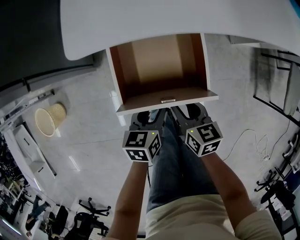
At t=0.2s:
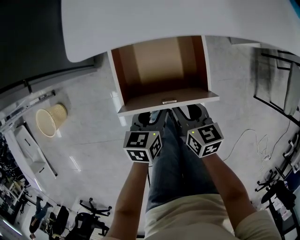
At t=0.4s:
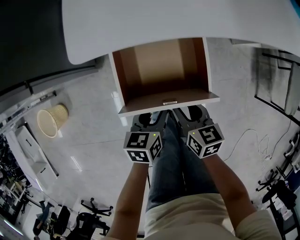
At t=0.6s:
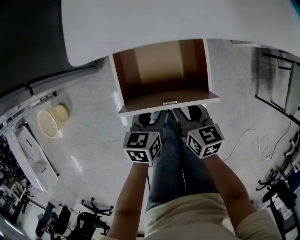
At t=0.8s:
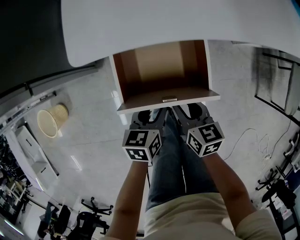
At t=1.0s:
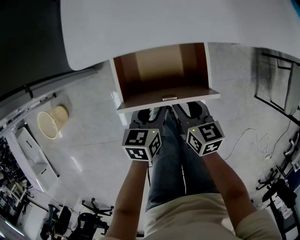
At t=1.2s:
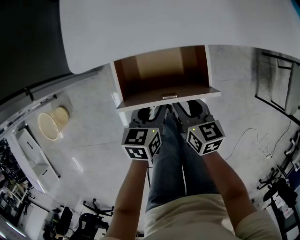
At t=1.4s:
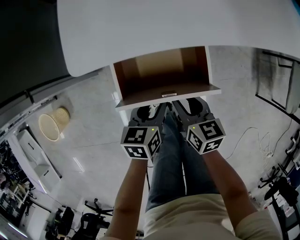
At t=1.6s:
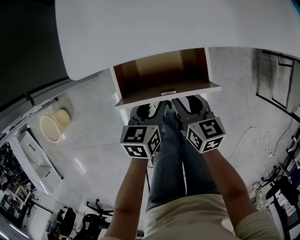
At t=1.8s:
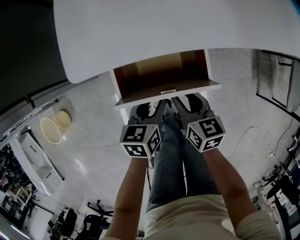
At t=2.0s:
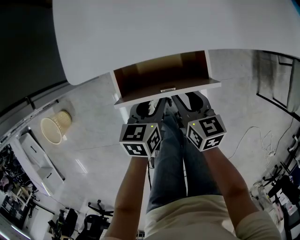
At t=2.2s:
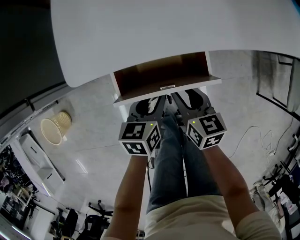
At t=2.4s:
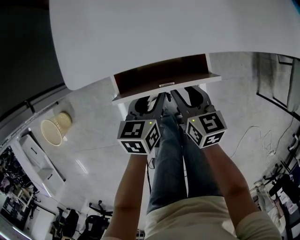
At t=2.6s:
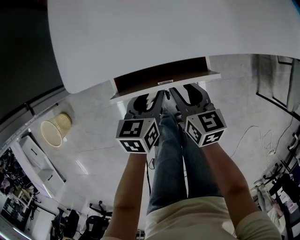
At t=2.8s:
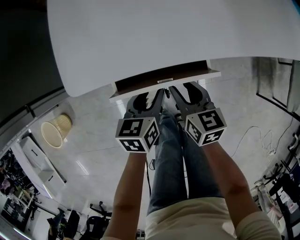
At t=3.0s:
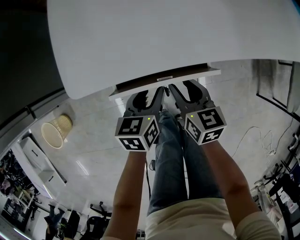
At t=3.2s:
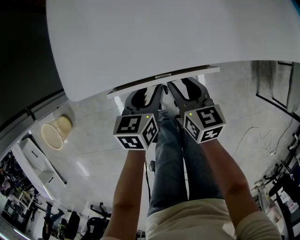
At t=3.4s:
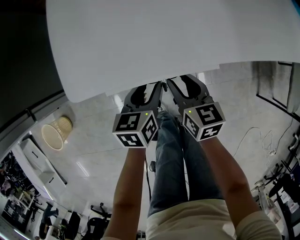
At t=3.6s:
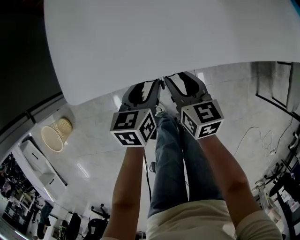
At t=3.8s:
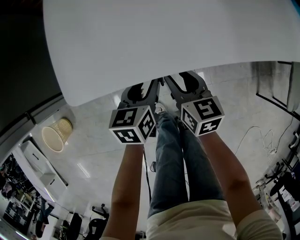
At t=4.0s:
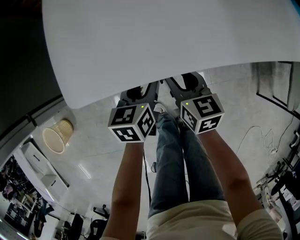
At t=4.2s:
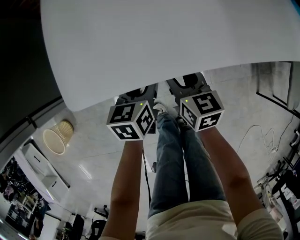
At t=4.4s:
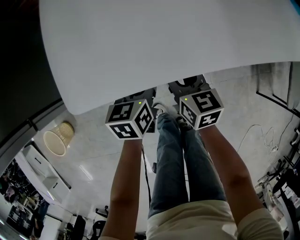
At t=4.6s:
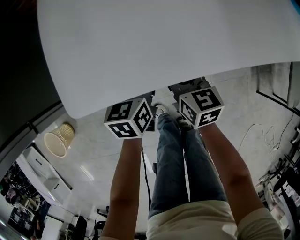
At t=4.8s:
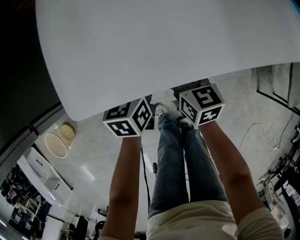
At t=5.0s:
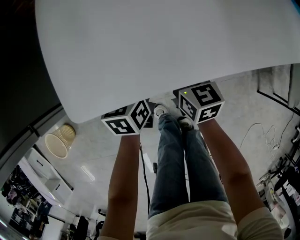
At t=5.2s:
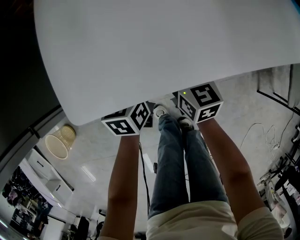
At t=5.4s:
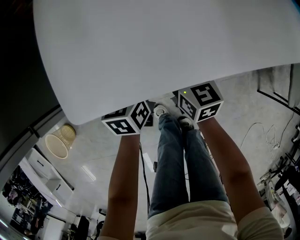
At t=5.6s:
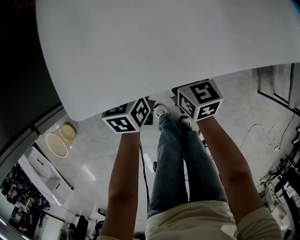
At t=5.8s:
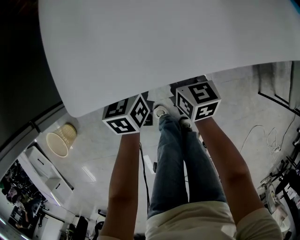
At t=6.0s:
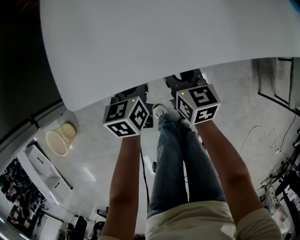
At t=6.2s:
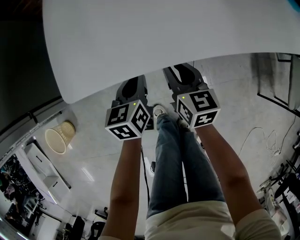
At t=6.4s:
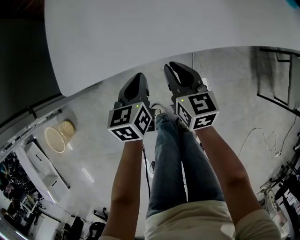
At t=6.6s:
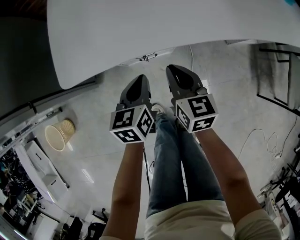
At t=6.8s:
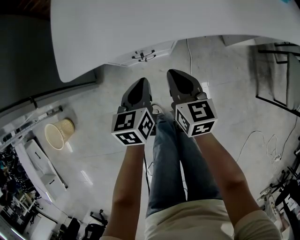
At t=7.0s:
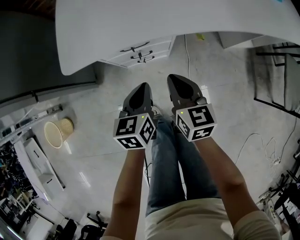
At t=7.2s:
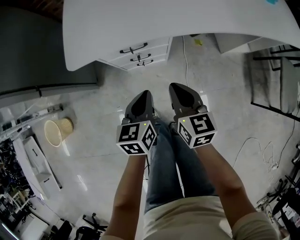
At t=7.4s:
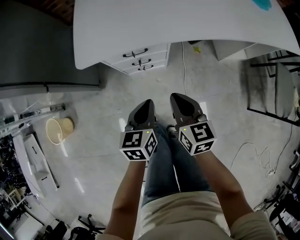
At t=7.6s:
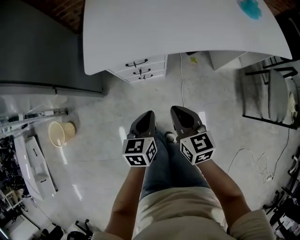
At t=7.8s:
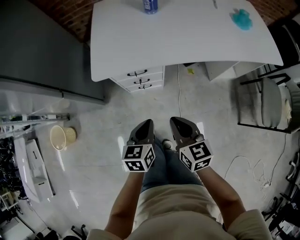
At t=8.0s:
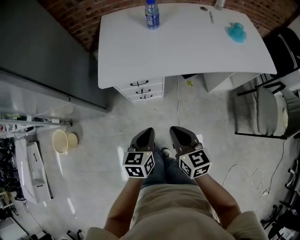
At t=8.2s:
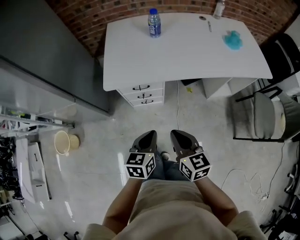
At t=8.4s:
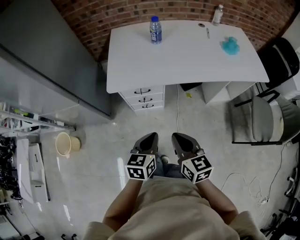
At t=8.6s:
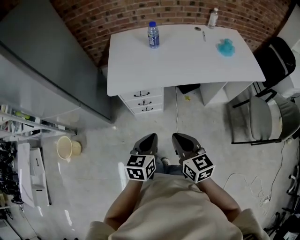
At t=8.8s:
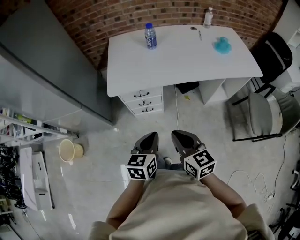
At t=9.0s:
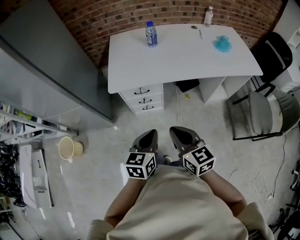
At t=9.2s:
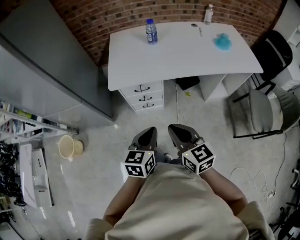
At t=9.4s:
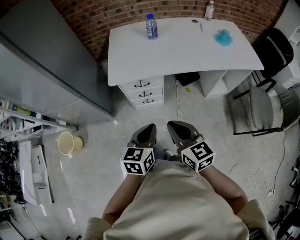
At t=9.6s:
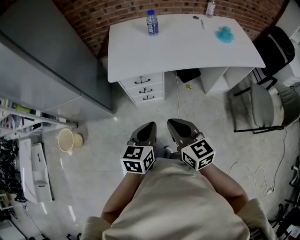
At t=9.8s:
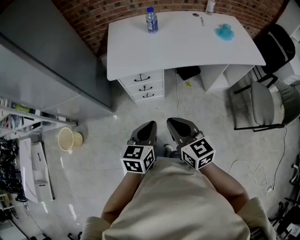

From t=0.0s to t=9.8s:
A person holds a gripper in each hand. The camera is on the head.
From t=0.0s to t=1.4s: The grippers move only a little.
From t=1.4s to t=2.8s: Both grippers move forward, some 5 cm.
From t=2.8s to t=4.2s: The two grippers go approximately 10 cm forward.
From t=4.2s to t=5.6s: The grippers stay close to where they were, moving slightly.
From t=5.6s to t=7.0s: The two grippers go approximately 20 cm backward, to the right and upward. The left gripper closes. Meanwhile the right gripper closes.
From t=7.0s to t=8.4s: The grippers both shift upward and backward by roughly 30 cm.
From t=8.4s to t=9.8s: The left gripper changes place by roughly 5 cm, while the right gripper changes place by about 5 cm.

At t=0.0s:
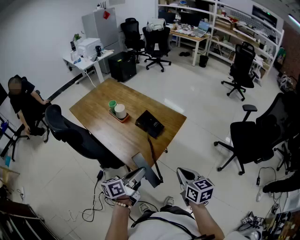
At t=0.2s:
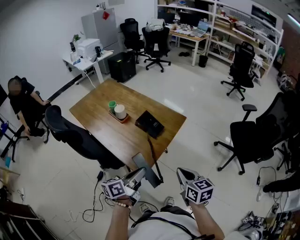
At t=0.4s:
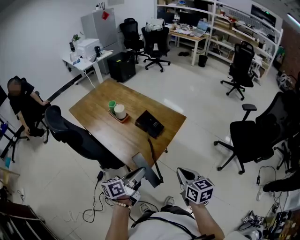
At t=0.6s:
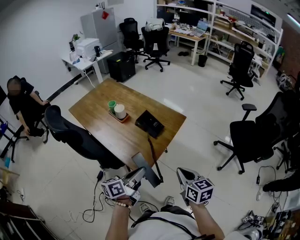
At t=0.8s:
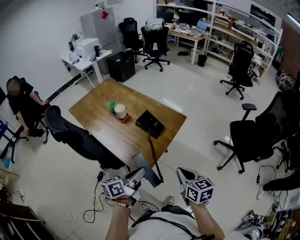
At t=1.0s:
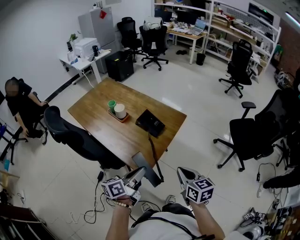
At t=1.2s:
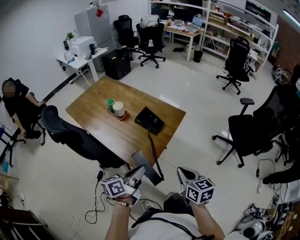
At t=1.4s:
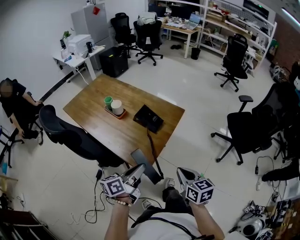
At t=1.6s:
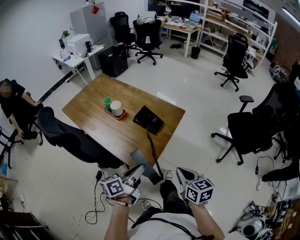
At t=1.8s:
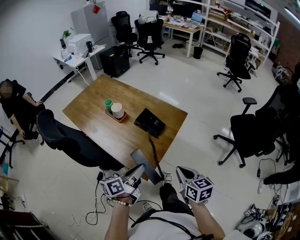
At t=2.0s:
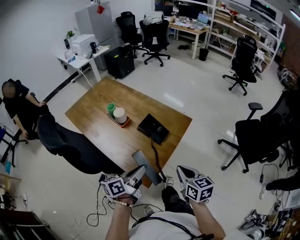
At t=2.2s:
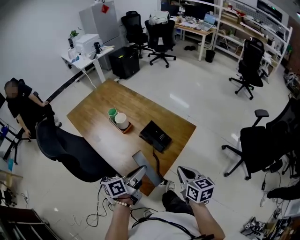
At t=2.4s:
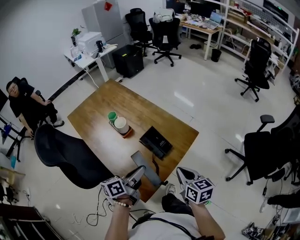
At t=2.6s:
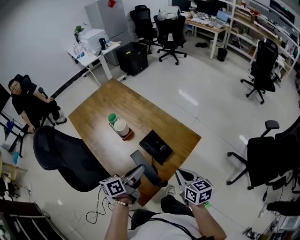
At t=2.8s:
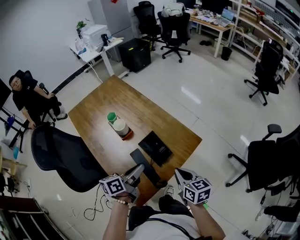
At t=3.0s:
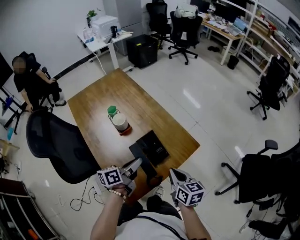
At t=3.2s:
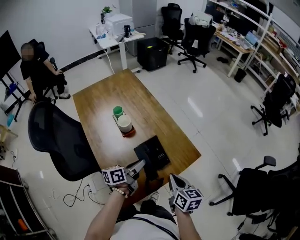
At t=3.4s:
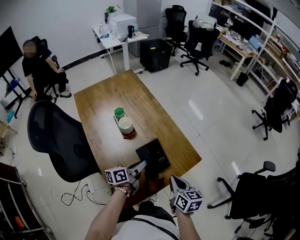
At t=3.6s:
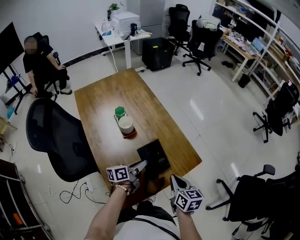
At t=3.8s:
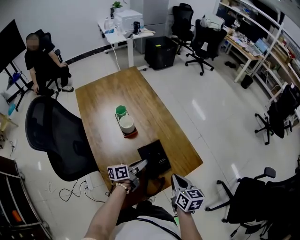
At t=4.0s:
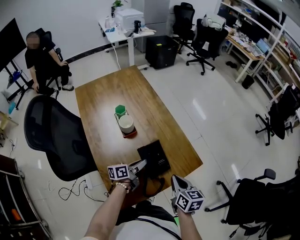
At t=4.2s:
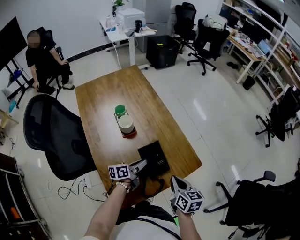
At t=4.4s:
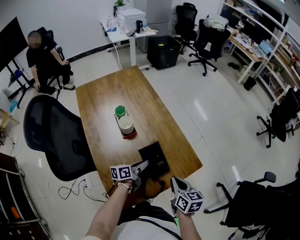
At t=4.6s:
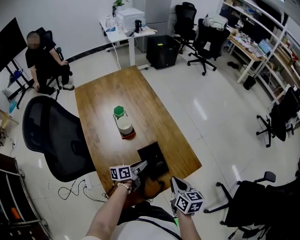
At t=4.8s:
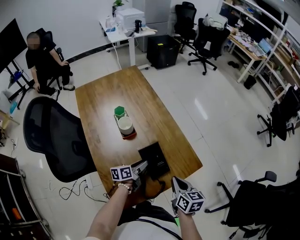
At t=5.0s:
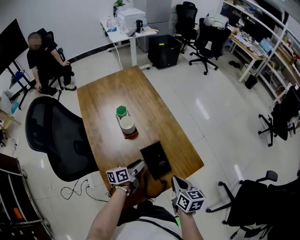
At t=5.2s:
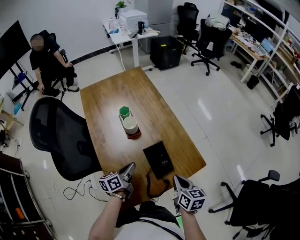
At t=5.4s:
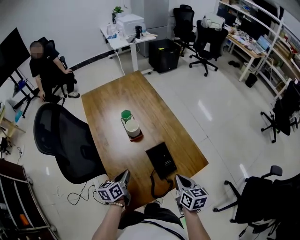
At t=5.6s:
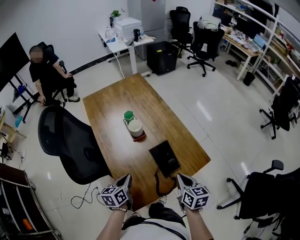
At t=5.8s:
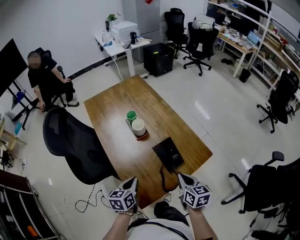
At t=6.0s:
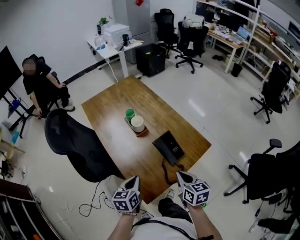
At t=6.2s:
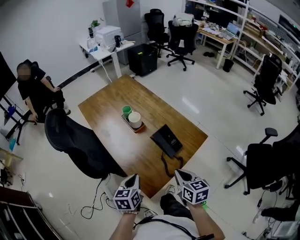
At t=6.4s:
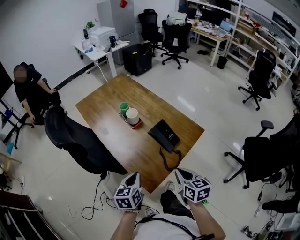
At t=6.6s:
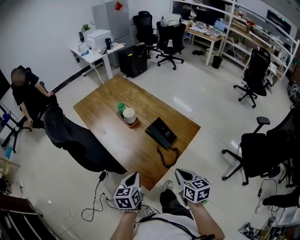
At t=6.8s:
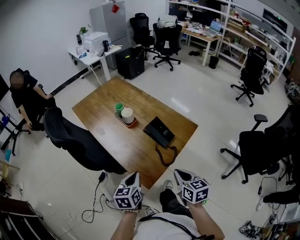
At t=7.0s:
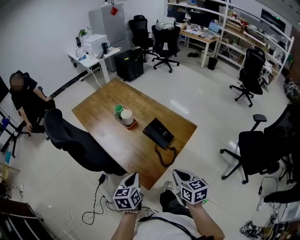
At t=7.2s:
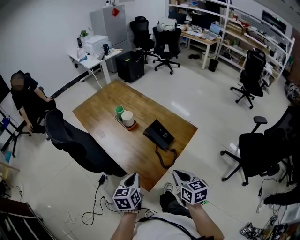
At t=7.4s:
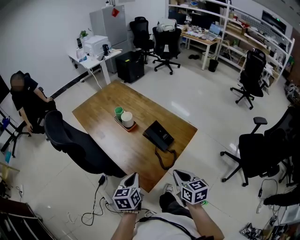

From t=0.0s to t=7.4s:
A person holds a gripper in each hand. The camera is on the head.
From t=0.0s to t=1.4s: The grippers stay close to where they were, moving slightly.
From t=1.4s to t=3.0s: Both grippers move forward, approximately 25 cm.
From t=3.0s to t=4.4s: The left gripper shifts about 15 cm downward and forward; the right gripper moves roughly 5 cm.
From t=4.4s to t=6.0s: The left gripper heads backward, to the left and upward, covering roughly 25 cm, changes its angle by some 40 degrees, and opens, then closes again. Meanwhile the right gripper shifts about 10 cm to the left and backward.
From t=6.0s to t=7.4s: The left gripper is displaced backward by roughly 5 cm. Meanwhile the right gripper heads backward, covering approximately 10 cm.

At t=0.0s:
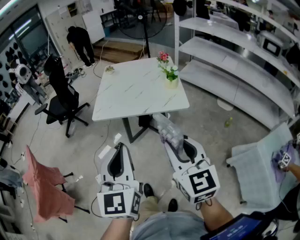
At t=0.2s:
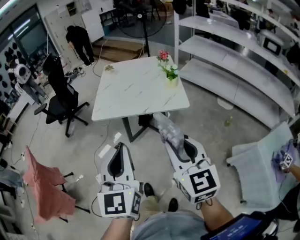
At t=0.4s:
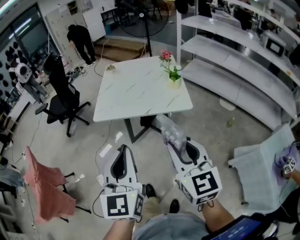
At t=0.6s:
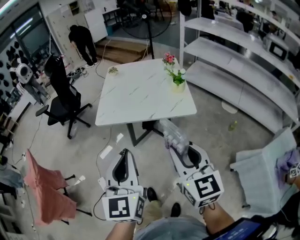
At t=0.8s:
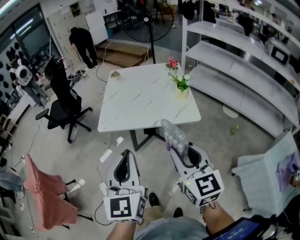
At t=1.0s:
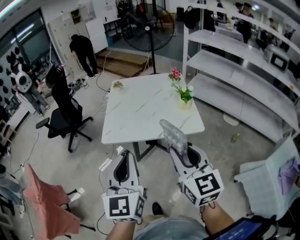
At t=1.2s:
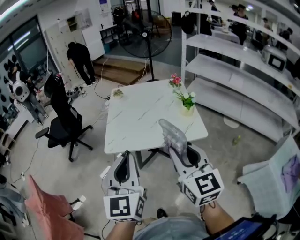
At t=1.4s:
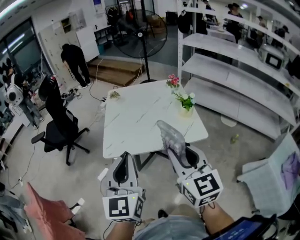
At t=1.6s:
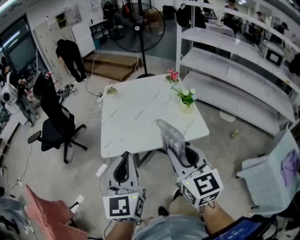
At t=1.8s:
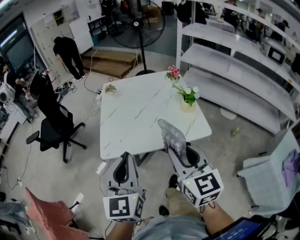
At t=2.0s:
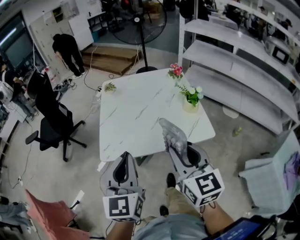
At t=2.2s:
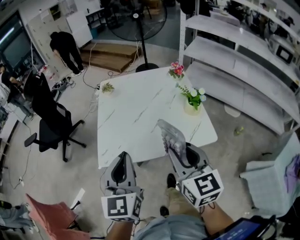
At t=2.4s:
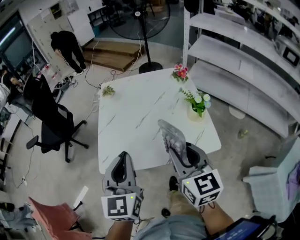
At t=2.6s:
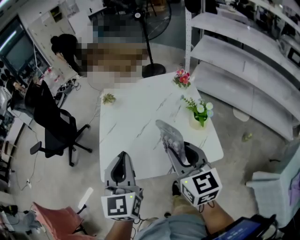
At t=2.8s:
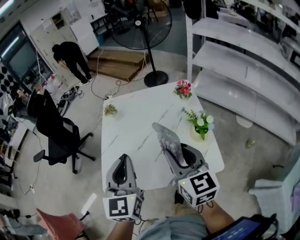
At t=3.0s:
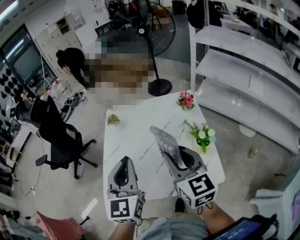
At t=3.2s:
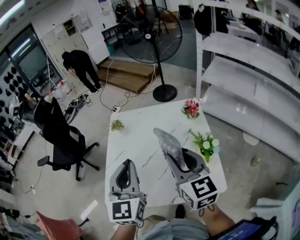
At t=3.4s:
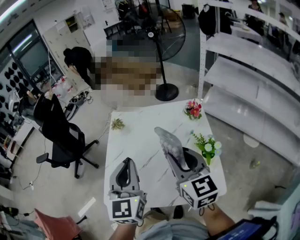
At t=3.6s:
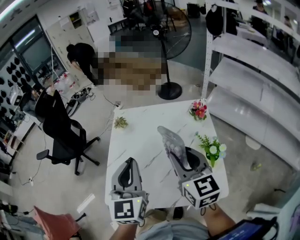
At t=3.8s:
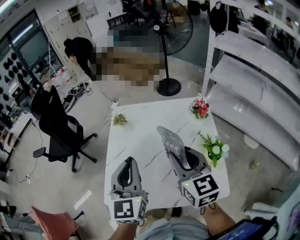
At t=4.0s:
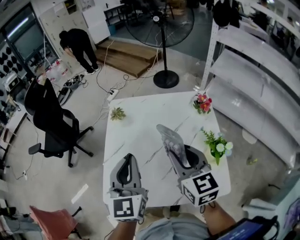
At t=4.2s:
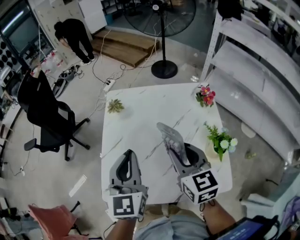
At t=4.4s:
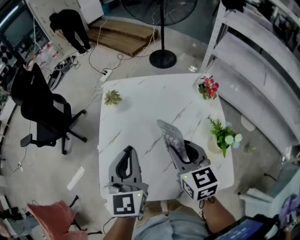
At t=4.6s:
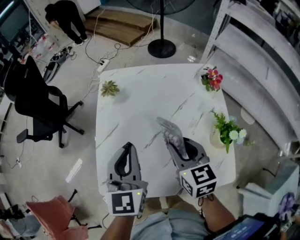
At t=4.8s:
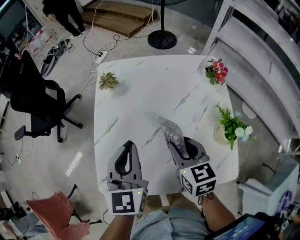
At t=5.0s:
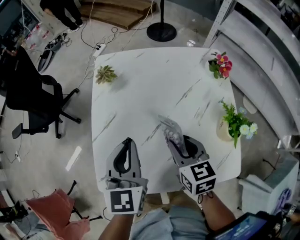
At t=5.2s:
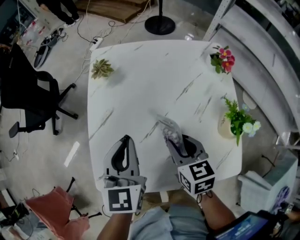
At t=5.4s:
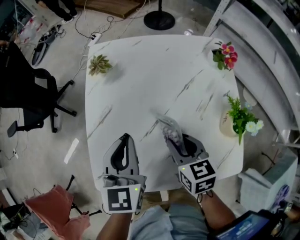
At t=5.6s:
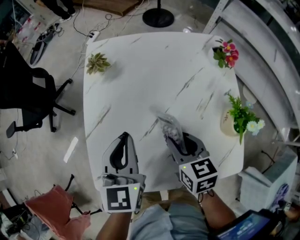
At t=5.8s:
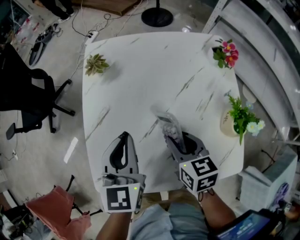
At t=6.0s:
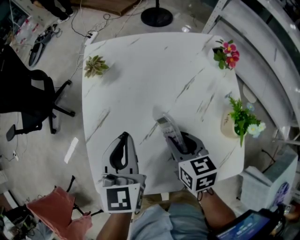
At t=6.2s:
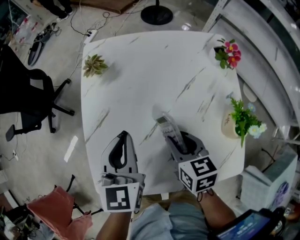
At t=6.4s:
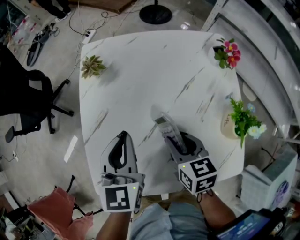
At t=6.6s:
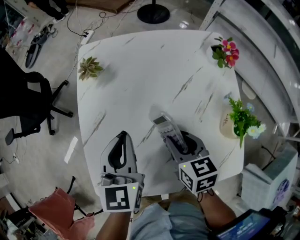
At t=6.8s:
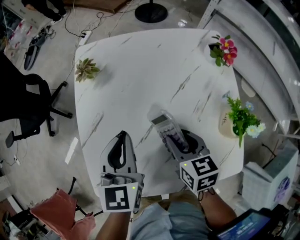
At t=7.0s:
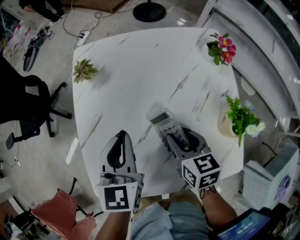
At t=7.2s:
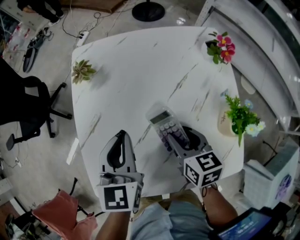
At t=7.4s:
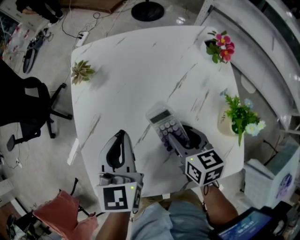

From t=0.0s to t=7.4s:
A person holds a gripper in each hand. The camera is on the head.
From t=0.0s to t=1.4s: The grippers both shift forward and to the left by some 20 cm.
From t=1.4s to t=3.0s: The two grippers go about 30 cm forward.
From t=3.0s to t=4.4s: The left gripper goes roughly 15 cm forward and downward. Meanwhile the right gripper heads downward and forward, covering about 15 cm.
From t=4.4s to t=6.0s: Both grippers move downward, roughly 10 cm. The right gripper swivels approximately 20 degrees.
From t=6.0s to t=7.4s: The grippers move only a little.
